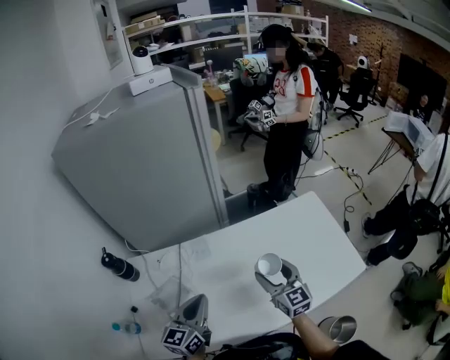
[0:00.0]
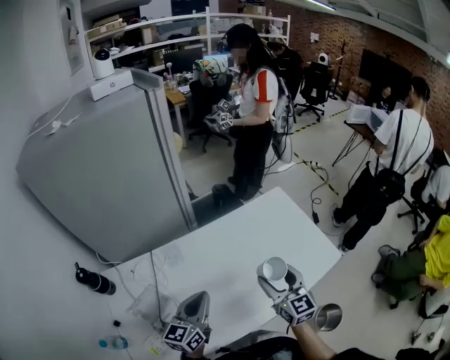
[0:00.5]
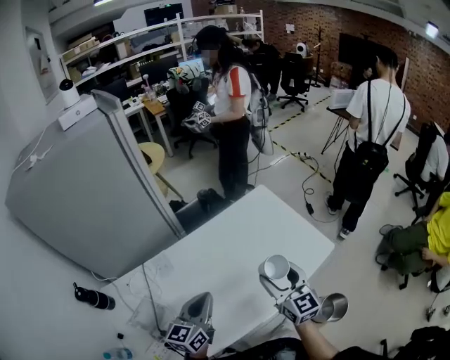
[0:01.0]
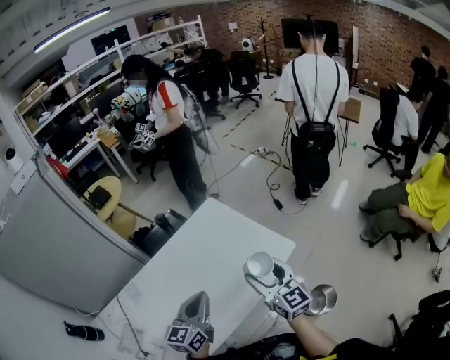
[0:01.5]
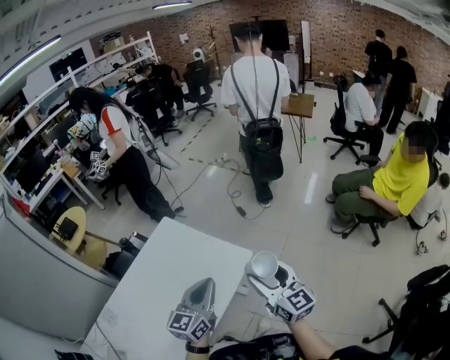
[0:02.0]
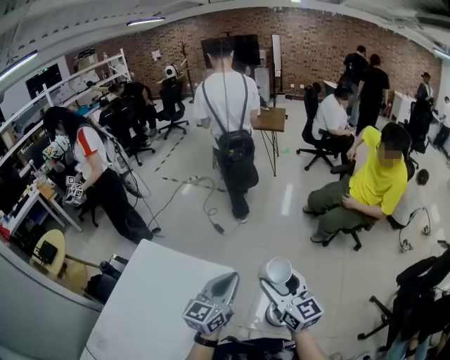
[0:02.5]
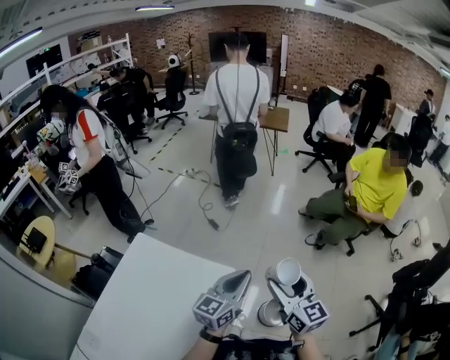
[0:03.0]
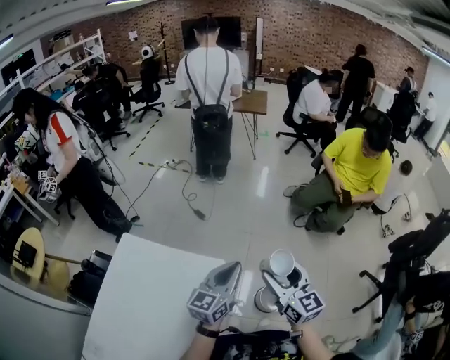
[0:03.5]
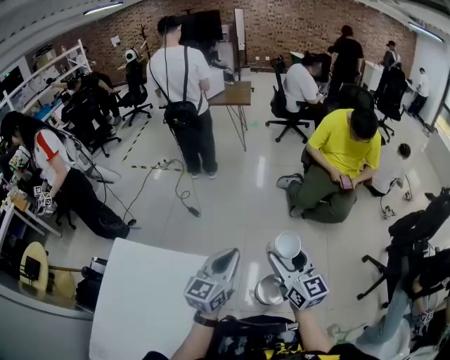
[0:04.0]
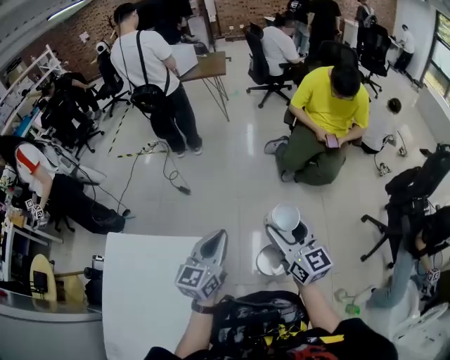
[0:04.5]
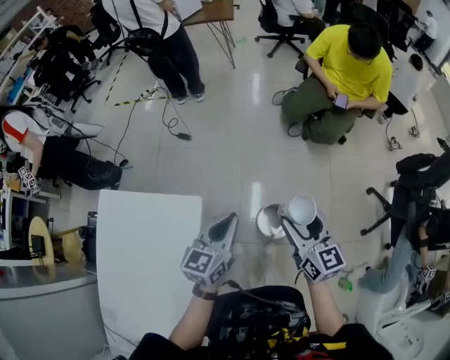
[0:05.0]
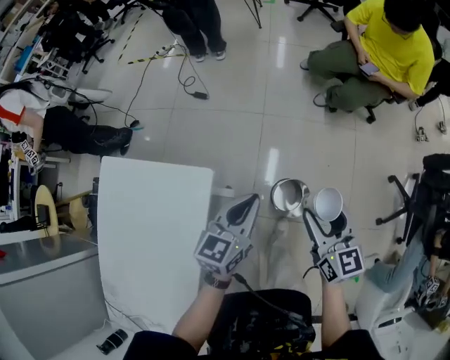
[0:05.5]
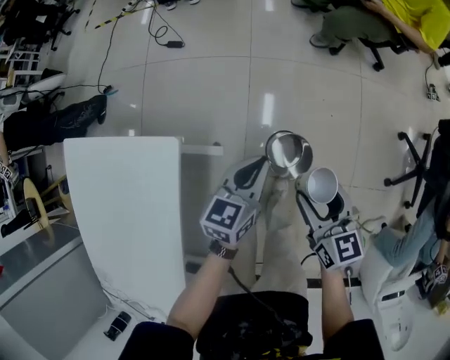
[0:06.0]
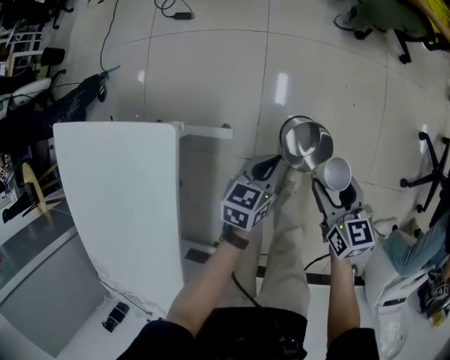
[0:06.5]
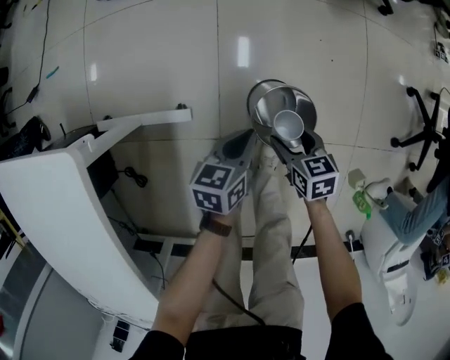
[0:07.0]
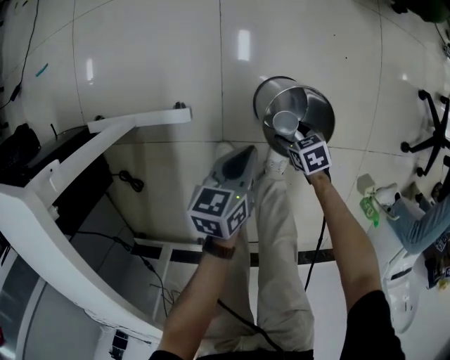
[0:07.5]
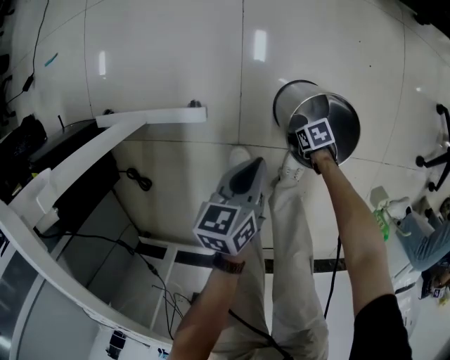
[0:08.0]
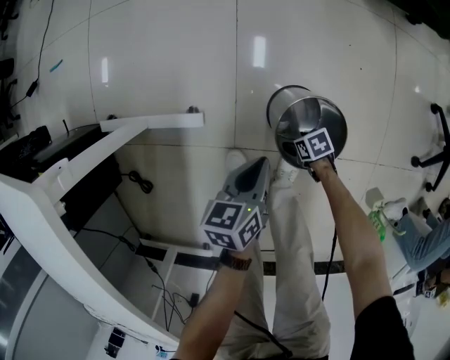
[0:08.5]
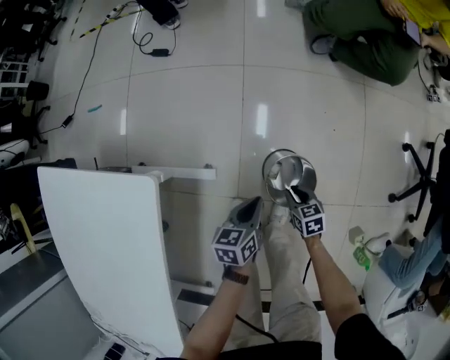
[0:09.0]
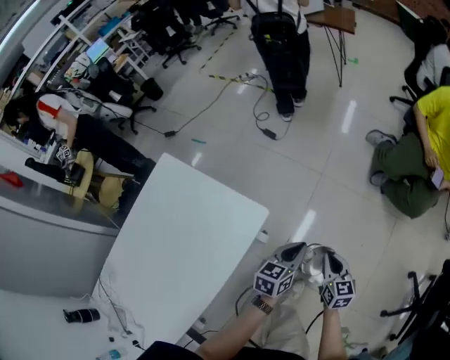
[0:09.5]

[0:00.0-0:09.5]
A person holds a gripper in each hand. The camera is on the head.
0:00.0 to 0:02.0: The two grippers travel together, approximately 50 cm. The right gripper swivels approximately 40 degrees; the left gripper rotates approximately 50 degrees.
0:02.0 to 0:04.0: The left gripper ends up about 25 cm from where it was, and turns by roughly 30 degrees. Meanwhile the right gripper moves roughly 20 cm, and swivels some 30 degrees.
0:04.0 to 0:05.5: The right gripper is displaced downward and to the right by about 15 cm. The left gripper goes roughly 15 cm downward.
0:05.5 to 0:07.5: The two grippers go roughly 60 cm downward. The right gripper points its fingers about 50 degrees further downward. Meanwhile the left gripper turns by some 30 degrees.
0:07.5 to 0:09.5: The grippers both shift upward by roughly 50 cm. The right gripper angles its fingers upward, by approximately 40 degrees, and closes, while the left gripper swivels some 30 degrees.

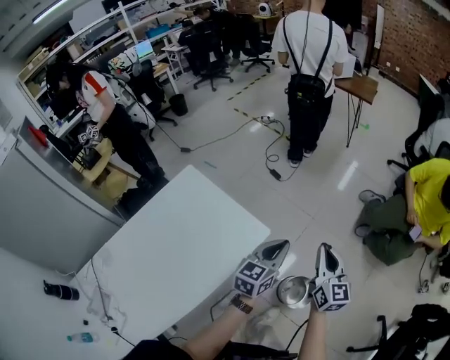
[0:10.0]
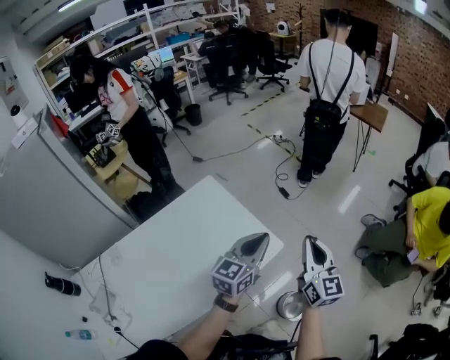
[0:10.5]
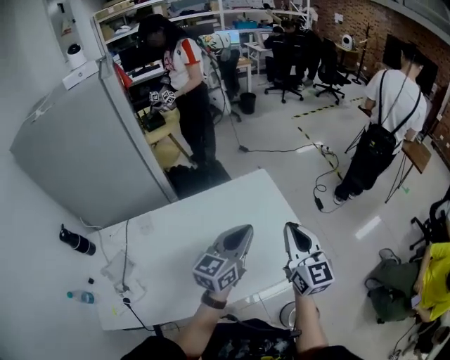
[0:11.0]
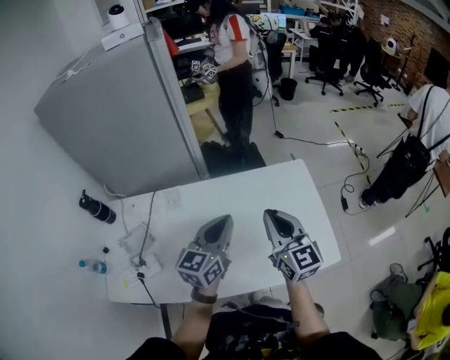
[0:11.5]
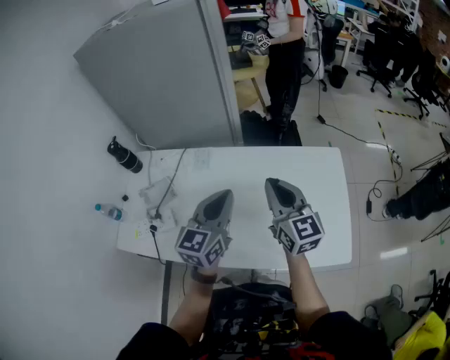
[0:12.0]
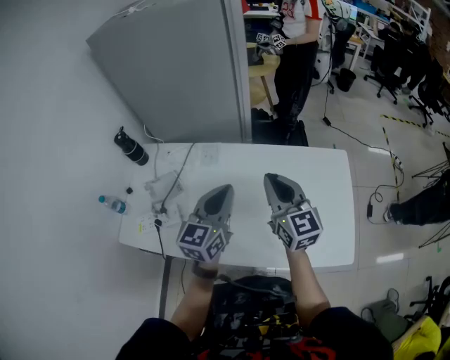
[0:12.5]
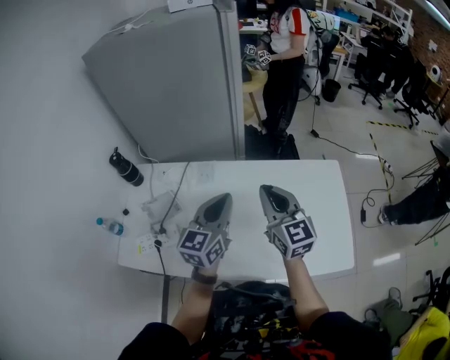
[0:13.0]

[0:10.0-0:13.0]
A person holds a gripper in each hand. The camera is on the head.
0:10.0 to 0:11.5: The pair of grippers is taken about 60 cm. The left gripper changes its angle by roughly 50 degrees, while the right gripper rotates approximately 60 degrees.
0:11.5 to 0:13.0: The grippers both shift to the left by approximately 15 cm.

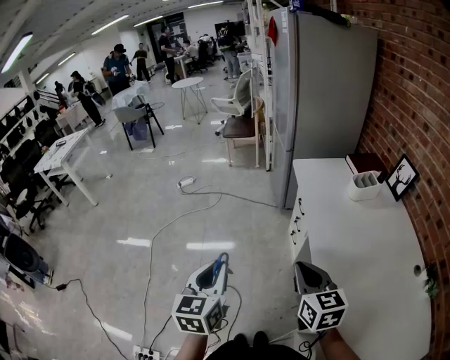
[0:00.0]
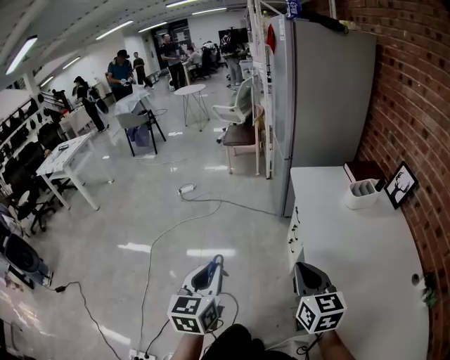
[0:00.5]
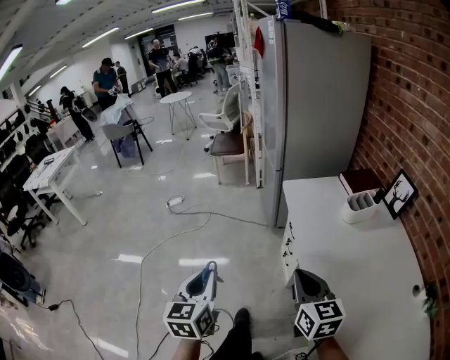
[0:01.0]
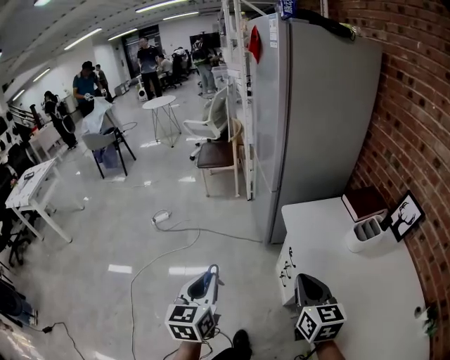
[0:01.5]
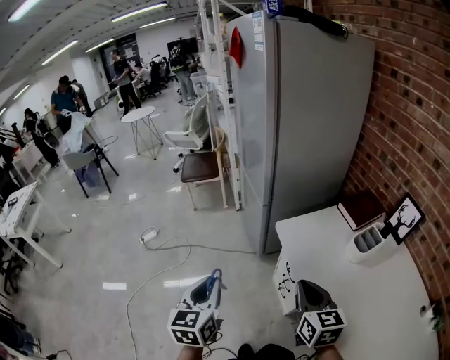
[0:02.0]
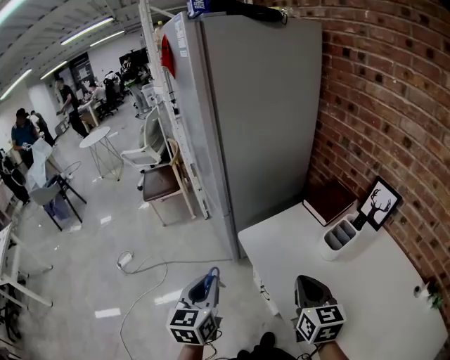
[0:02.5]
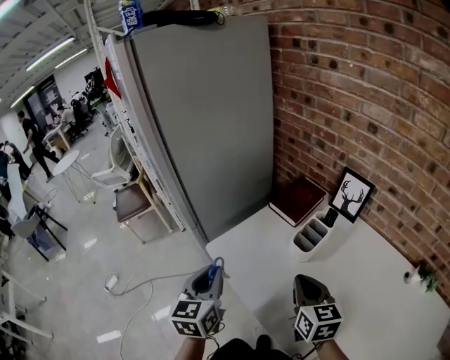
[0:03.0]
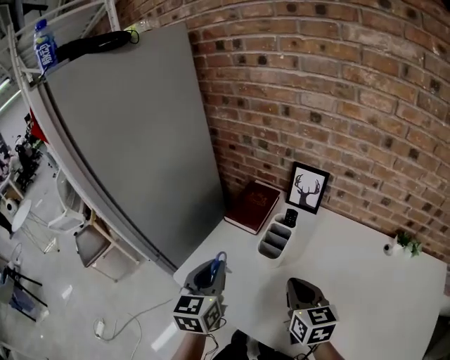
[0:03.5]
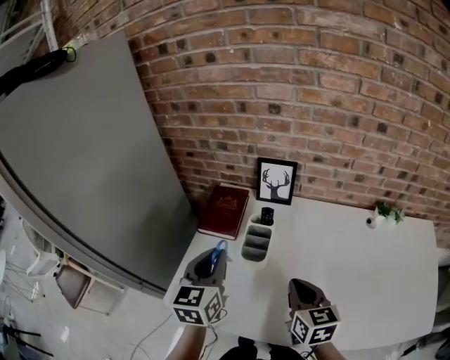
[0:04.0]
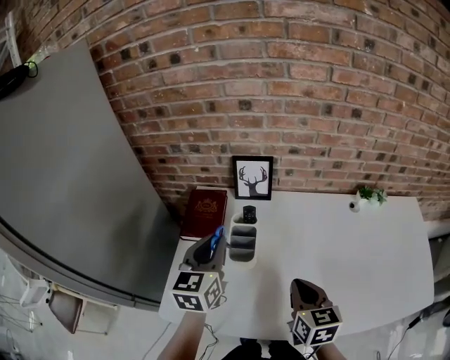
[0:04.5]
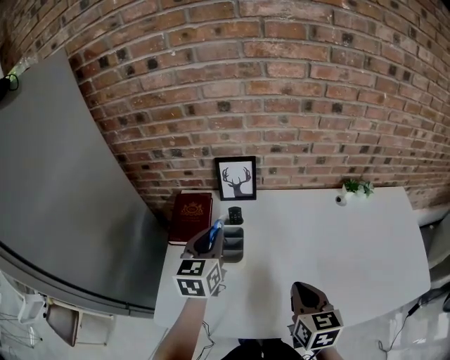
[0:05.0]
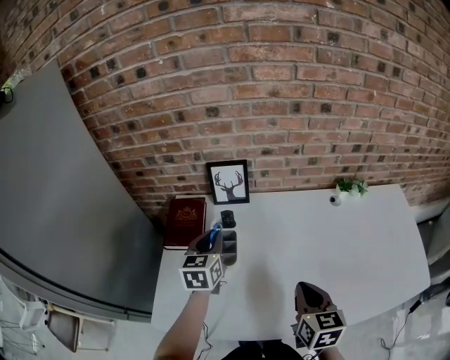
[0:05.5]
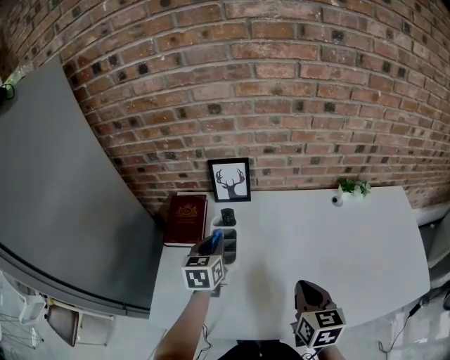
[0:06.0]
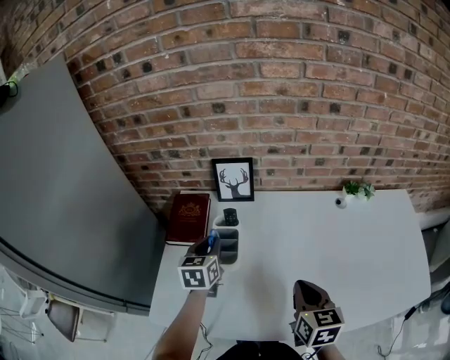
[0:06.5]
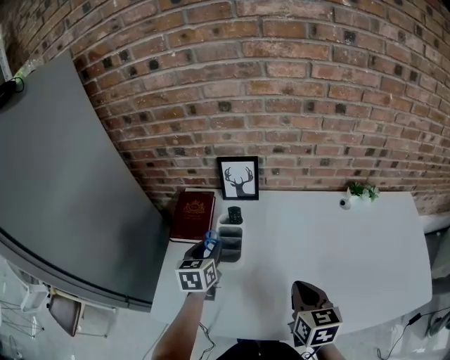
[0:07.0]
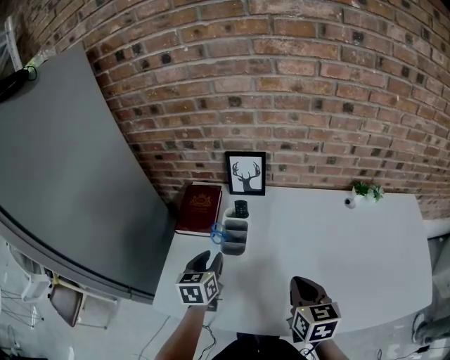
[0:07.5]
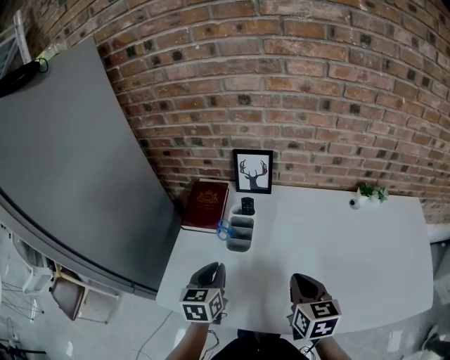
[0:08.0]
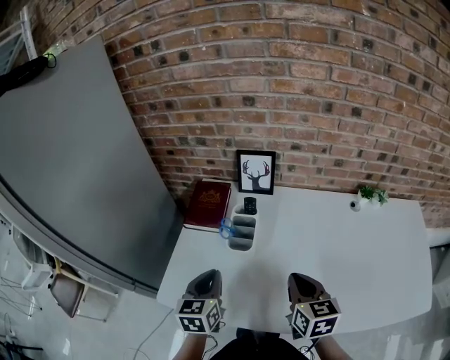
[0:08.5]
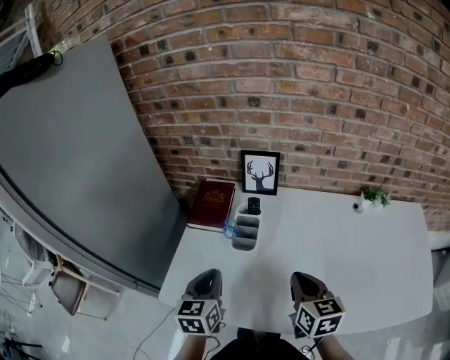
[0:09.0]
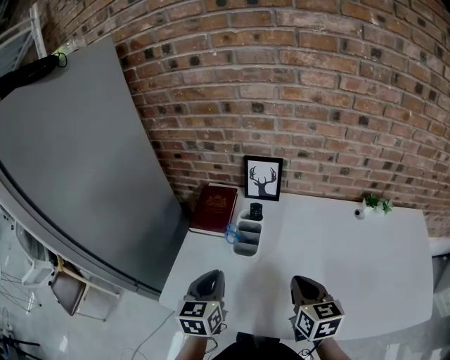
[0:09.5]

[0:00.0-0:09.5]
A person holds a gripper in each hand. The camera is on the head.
0:00.0 to 0:02.0: Both grippers move forward, some 35 cm.
0:02.0 to 0:04.0: The left gripper ends up roughly 50 cm from where it was, and turns by about 60 degrees, while the right gripper shifts by some 25 cm, and changes its angle by approximately 60 degrees.
0:04.0 to 0:05.5: The left gripper goes about 15 cm forward, to the right and downward, while the right gripper travels to the right by about 10 cm, and rotates about 20 degrees.
0:05.5 to 0:07.5: The left gripper shifts roughly 10 cm backward and downward, and opens up.
0:07.5 to 0:09.5: The left gripper goes about 10 cm backward and upward, and closes.

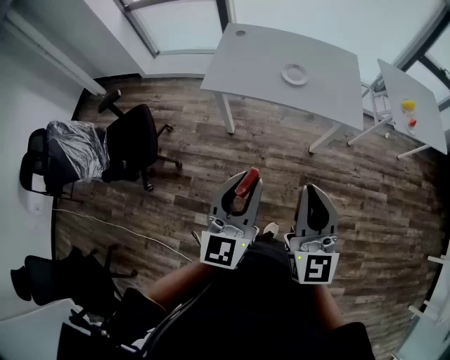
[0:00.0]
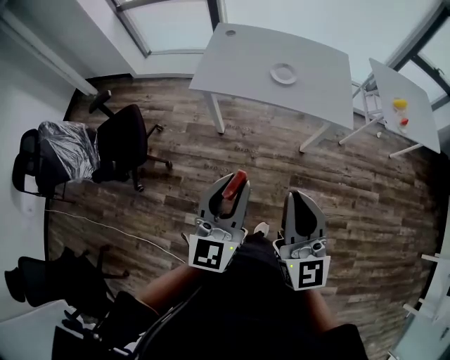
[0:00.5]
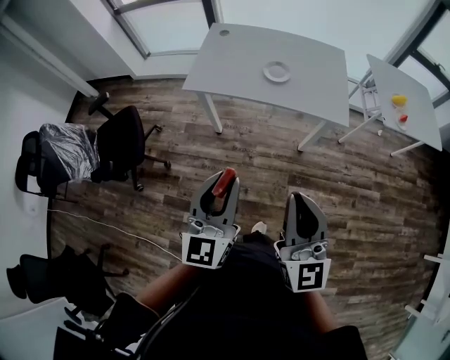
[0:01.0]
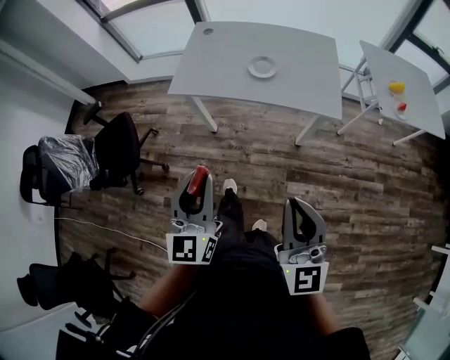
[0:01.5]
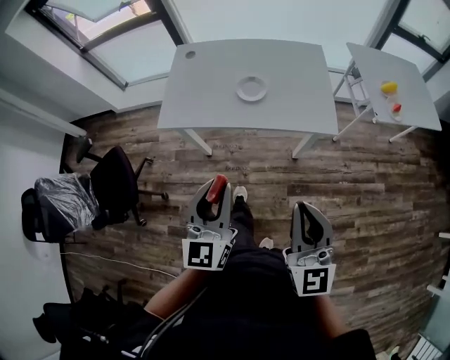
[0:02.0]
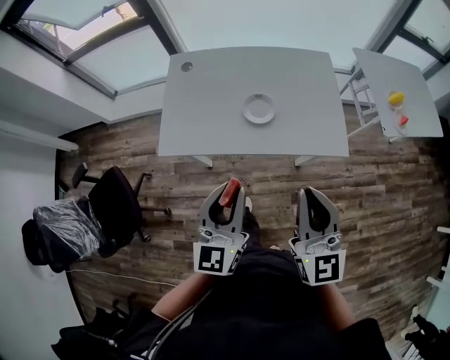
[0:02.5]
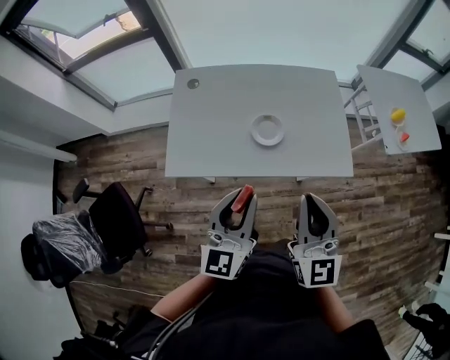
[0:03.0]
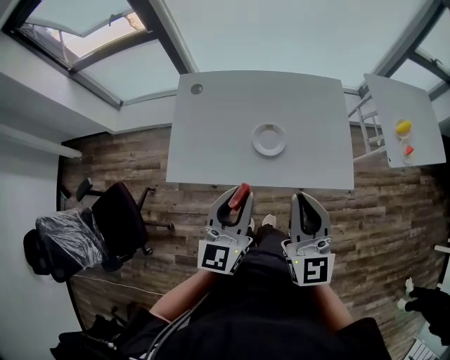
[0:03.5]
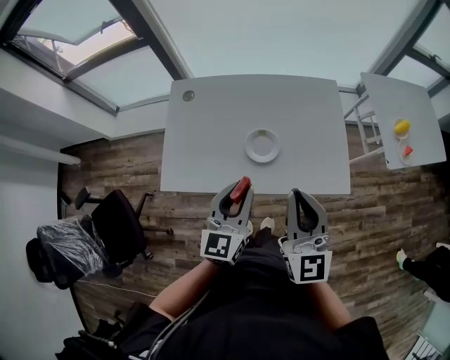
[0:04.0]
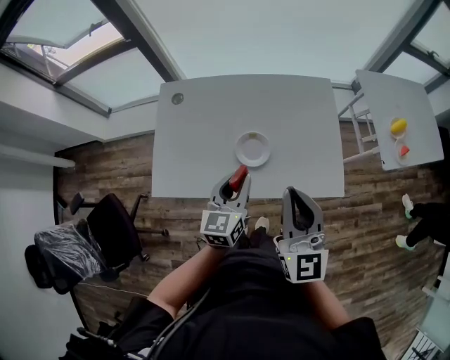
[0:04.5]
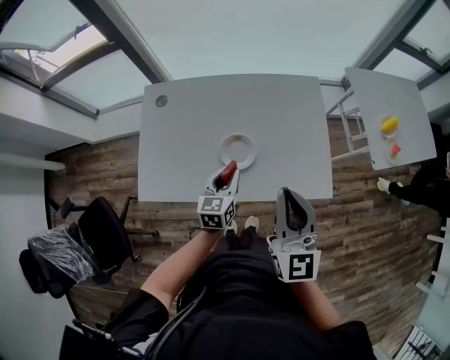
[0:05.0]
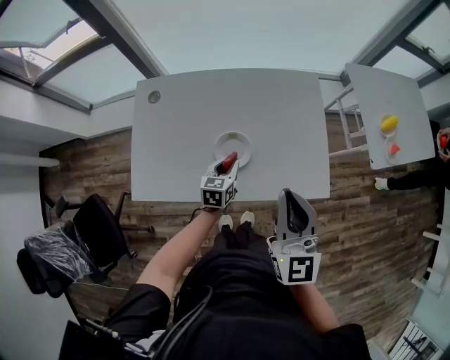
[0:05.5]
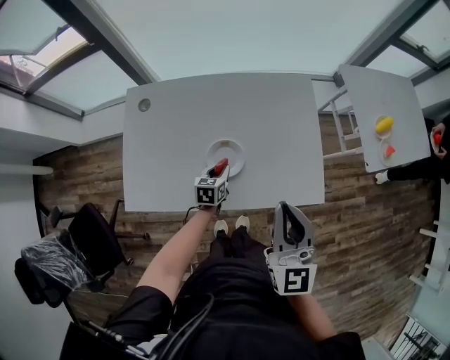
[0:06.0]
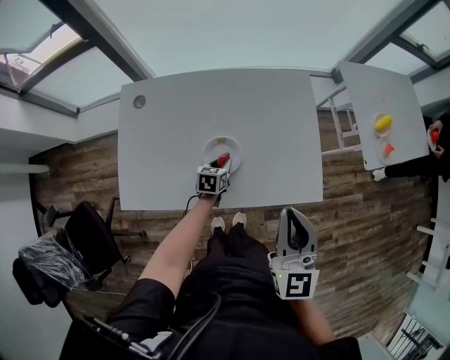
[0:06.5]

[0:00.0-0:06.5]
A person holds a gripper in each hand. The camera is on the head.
0:00.0 to 0:02.0: The right gripper shifts approximately 15 cm to the right and forward; the left gripper travels forward and to the right by some 15 cm.
0:02.0 to 0:04.5: The two grippers go some 35 cm forward. The left gripper swivels roughly 20 degrees.
0:04.5 to 0:06.5: The left gripper shifts some 30 cm downward and forward, and changes its angle by approximately 30 degrees. Meanwhile the right gripper shifts about 10 cm to the right and downward.
